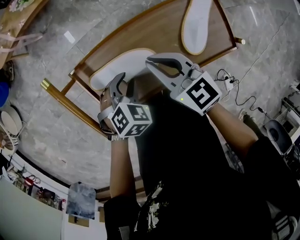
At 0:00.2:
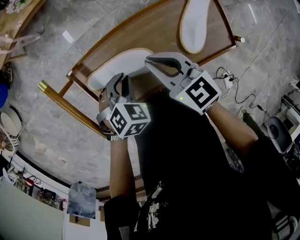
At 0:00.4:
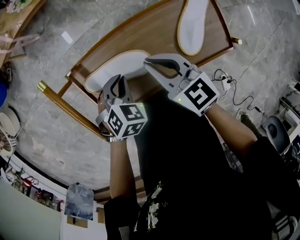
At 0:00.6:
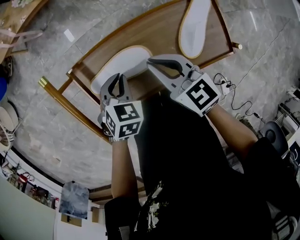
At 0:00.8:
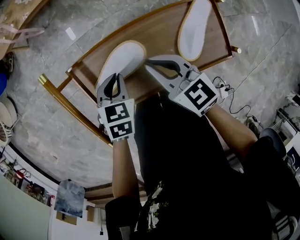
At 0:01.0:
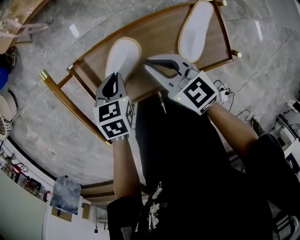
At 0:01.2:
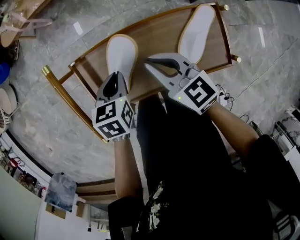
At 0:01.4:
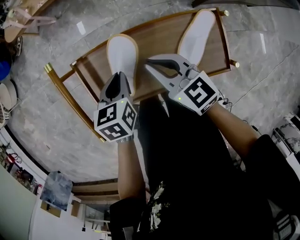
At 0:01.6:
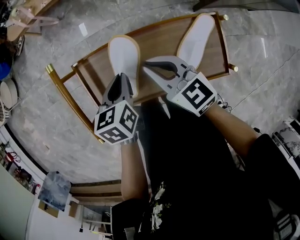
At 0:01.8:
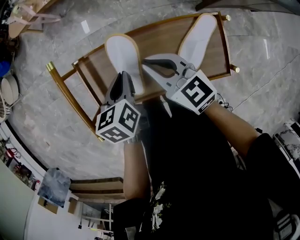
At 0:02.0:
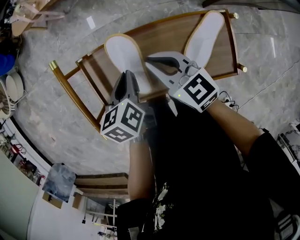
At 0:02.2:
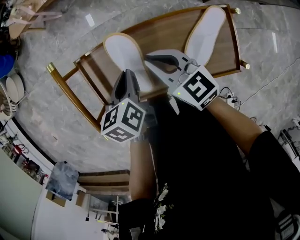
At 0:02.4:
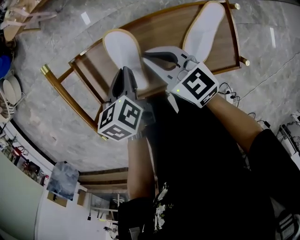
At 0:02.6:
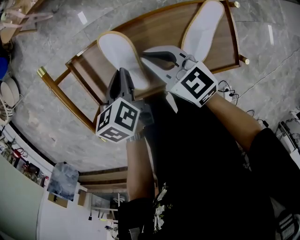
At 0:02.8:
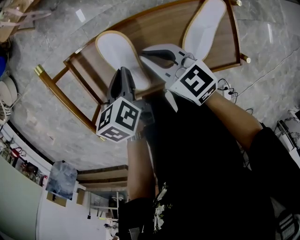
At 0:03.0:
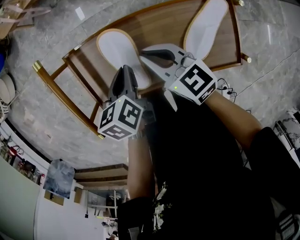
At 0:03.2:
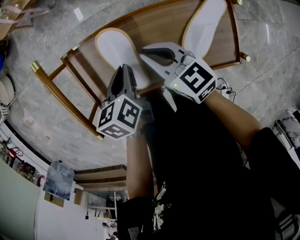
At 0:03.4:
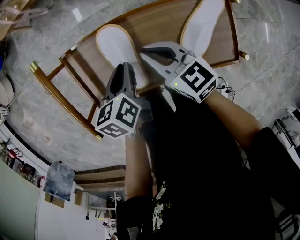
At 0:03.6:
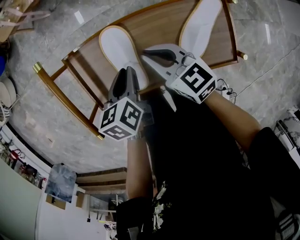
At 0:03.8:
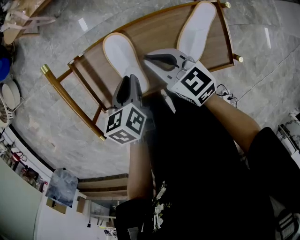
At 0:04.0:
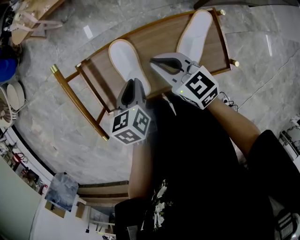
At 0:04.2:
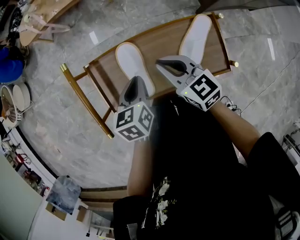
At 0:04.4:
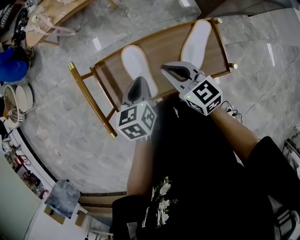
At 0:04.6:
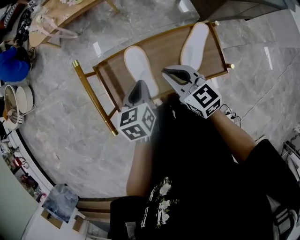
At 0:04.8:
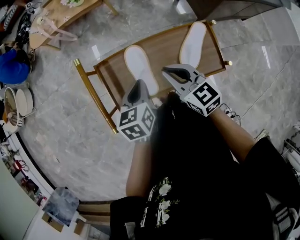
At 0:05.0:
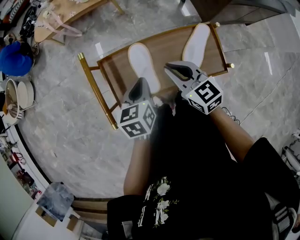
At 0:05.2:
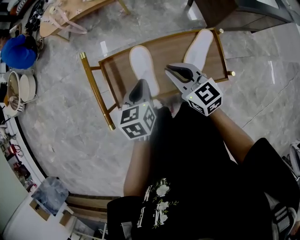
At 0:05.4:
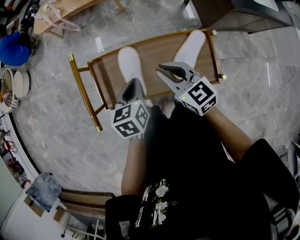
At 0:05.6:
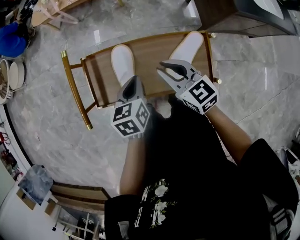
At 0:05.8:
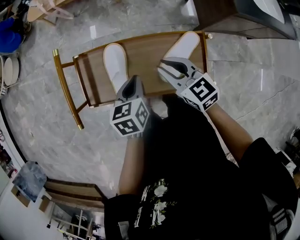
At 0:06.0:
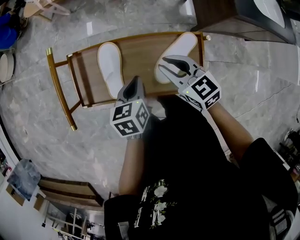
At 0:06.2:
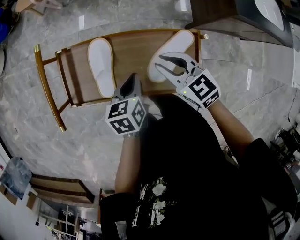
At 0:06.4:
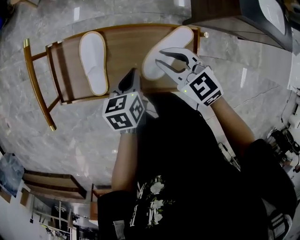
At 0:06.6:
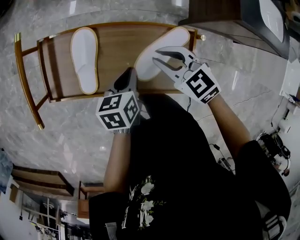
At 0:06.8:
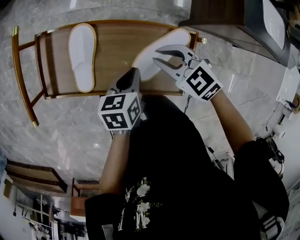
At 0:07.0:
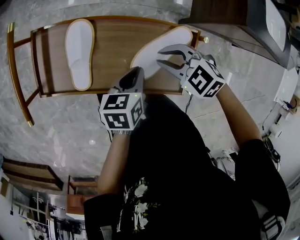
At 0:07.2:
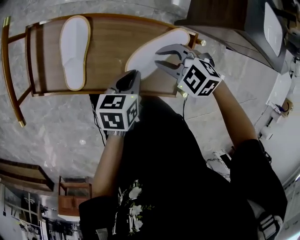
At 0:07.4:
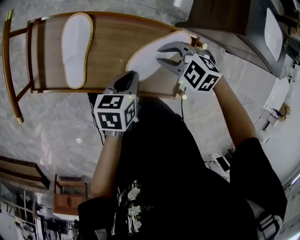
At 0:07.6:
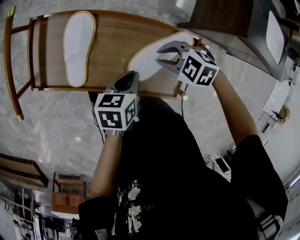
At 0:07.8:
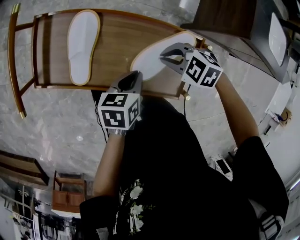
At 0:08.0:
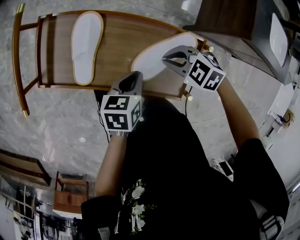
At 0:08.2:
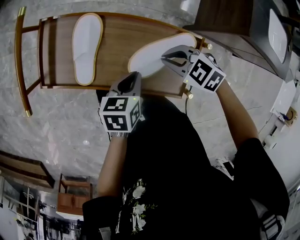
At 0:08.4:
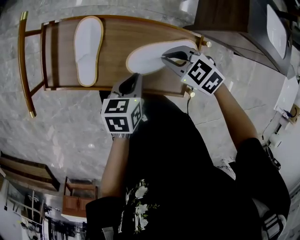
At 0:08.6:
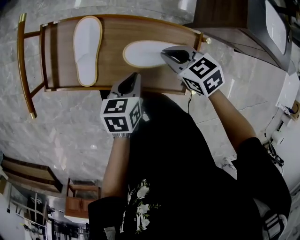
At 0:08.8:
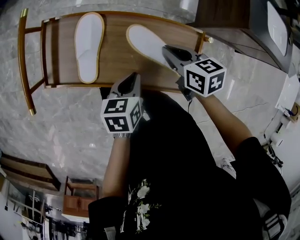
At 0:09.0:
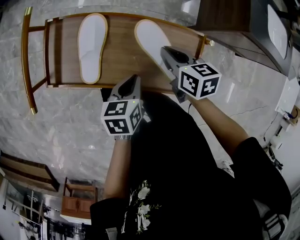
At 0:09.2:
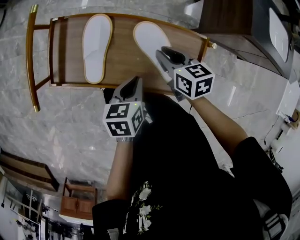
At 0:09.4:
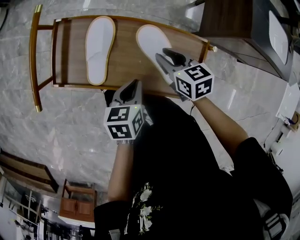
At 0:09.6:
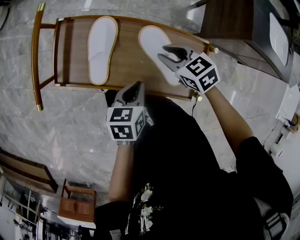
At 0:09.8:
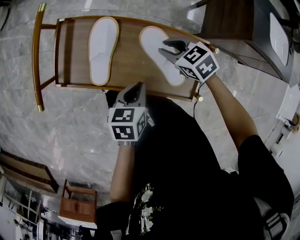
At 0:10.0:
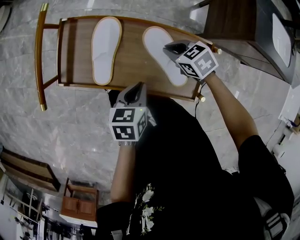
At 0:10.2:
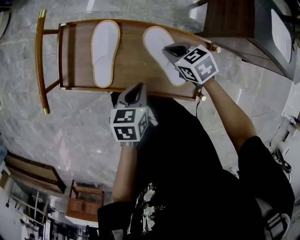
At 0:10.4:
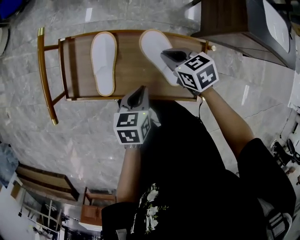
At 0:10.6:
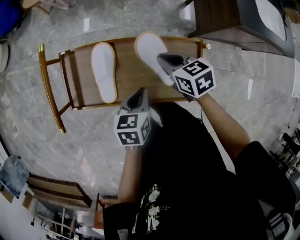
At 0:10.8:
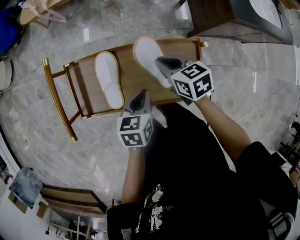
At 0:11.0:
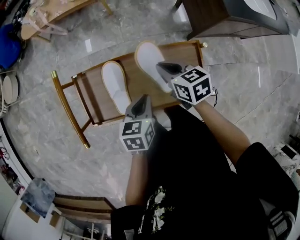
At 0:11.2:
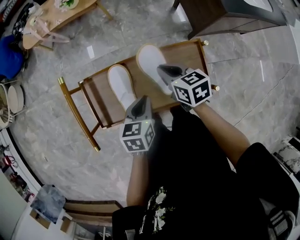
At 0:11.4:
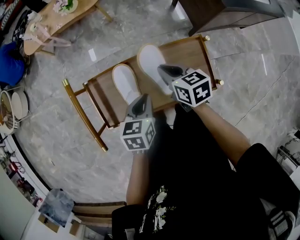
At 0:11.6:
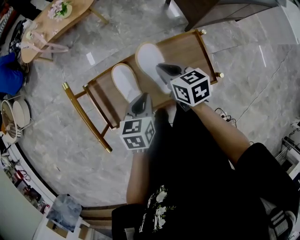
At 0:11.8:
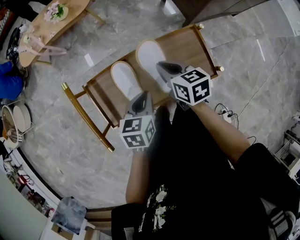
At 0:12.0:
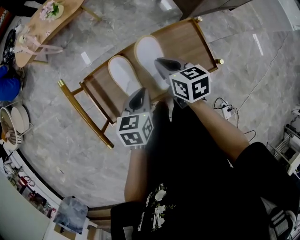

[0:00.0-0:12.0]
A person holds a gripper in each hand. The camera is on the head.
0:00.0 to 0:01.6: The left gripper shifts roughly 10 cm upward, rotates around the line of its fingers by some 70 degrees, counterclockwise from behind, and closes up.
0:01.6 to 0:03.0: The right gripper shifts approximately 5 cm downward.
0:03.0 to 0:04.4: Both grippers move upward, roughly 10 cm.
0:04.4 to 0:06.0: Both grippers travel together to the right, some 10 cm.
0:06.0 to 0:07.6: The left gripper shifts by approximately 10 cm. The right gripper shifts some 15 cm downward, and angles its fingers downward, by about 30 degrees.
0:07.6 to 0:09.0: The right gripper moves approximately 5 cm, and rolls clockwise, seen from behind, by about 60 degrees.
0:09.0 to 0:10.4: The right gripper opens, then closes once more.
0:10.4 to 0:12.0: The left gripper shifts by about 10 cm, and changes its angle by roughly 30 degrees. Meanwhile the right gripper goes about 5 cm upward, and rotates approximately 50 degrees.

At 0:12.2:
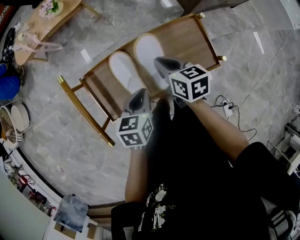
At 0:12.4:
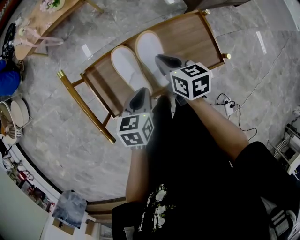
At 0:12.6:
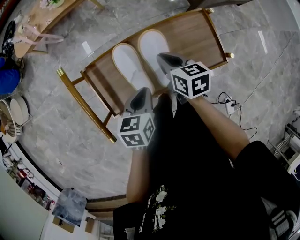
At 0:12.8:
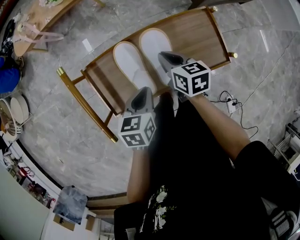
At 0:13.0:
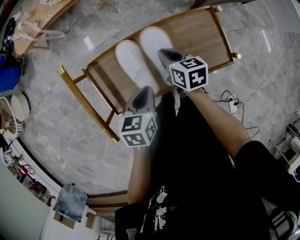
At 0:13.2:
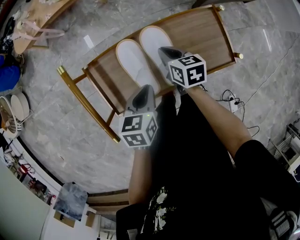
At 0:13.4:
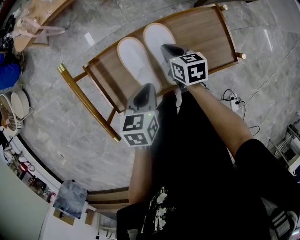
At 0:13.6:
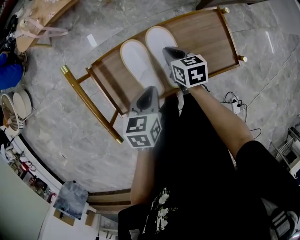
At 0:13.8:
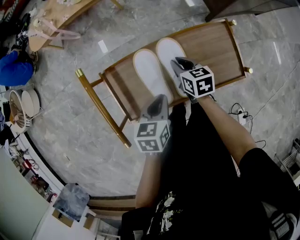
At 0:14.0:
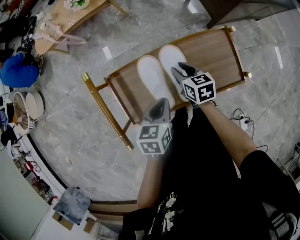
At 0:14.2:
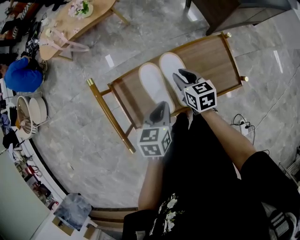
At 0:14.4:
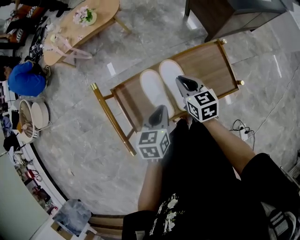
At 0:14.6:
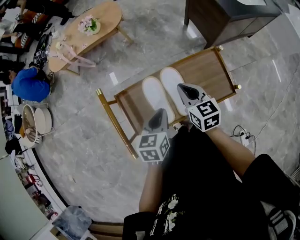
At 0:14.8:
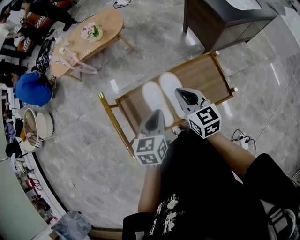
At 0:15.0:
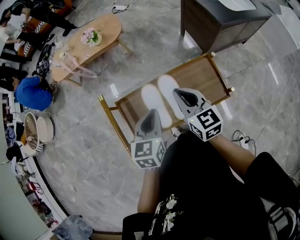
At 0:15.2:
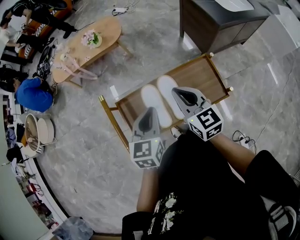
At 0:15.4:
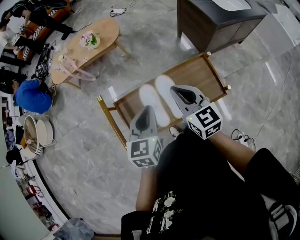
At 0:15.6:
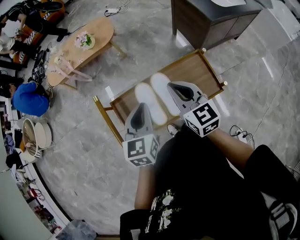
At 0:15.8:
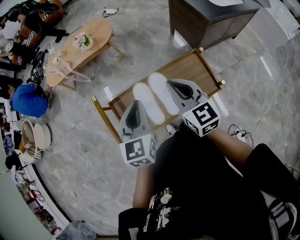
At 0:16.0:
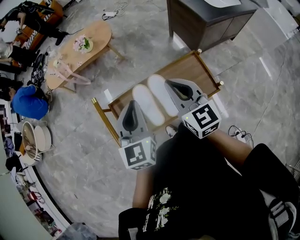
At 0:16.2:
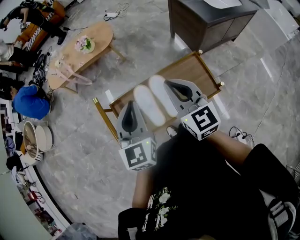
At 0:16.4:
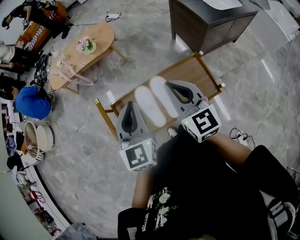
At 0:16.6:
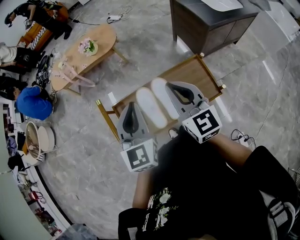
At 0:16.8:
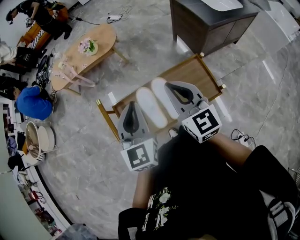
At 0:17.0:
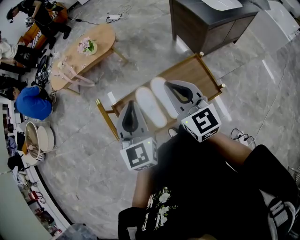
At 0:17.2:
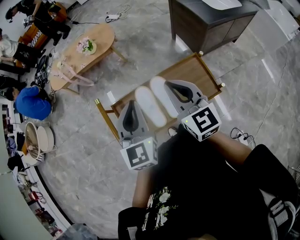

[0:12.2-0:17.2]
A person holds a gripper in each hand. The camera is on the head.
0:12.2 to 0:13.8: The right gripper heads downward, covering about 10 cm.
0:13.8 to 0:15.6: The grippers both shift upward by about 25 cm. The right gripper swivels about 40 degrees. Meanwhile the left gripper rotates approximately 30 degrees.
0:15.6 to 0:17.2: Both grippers travel together upward, roughly 5 cm.

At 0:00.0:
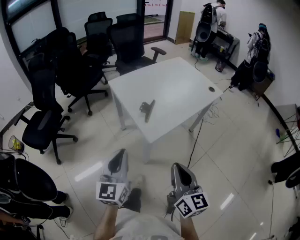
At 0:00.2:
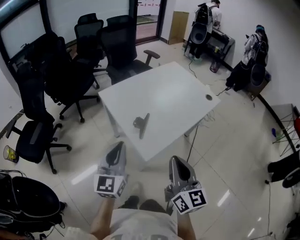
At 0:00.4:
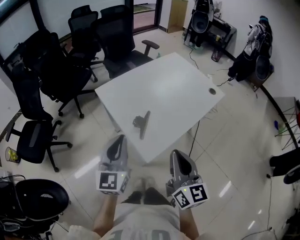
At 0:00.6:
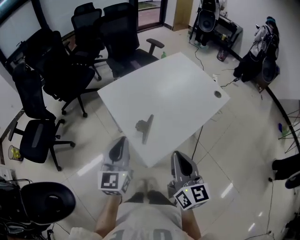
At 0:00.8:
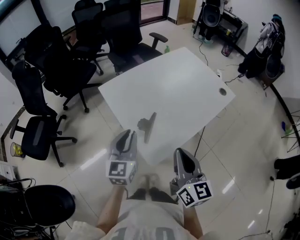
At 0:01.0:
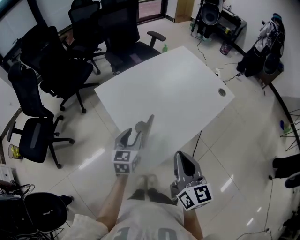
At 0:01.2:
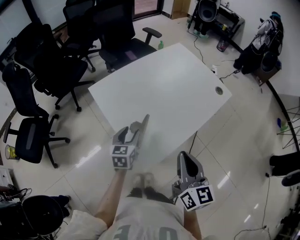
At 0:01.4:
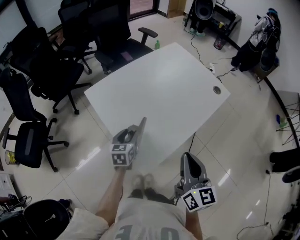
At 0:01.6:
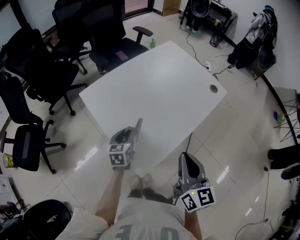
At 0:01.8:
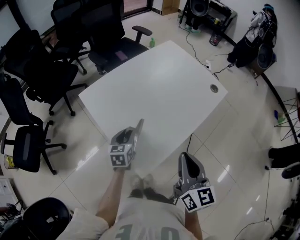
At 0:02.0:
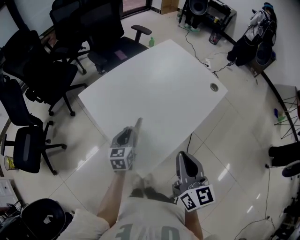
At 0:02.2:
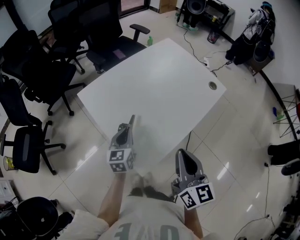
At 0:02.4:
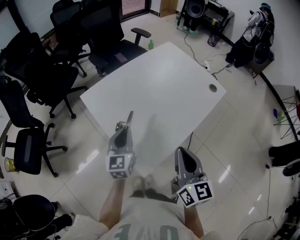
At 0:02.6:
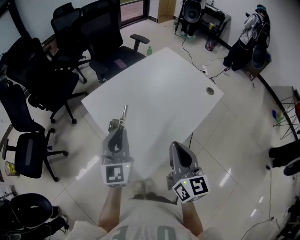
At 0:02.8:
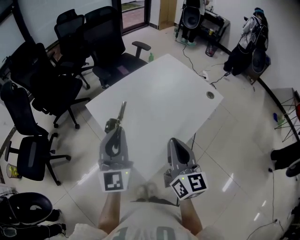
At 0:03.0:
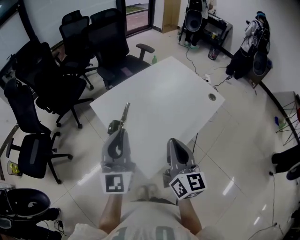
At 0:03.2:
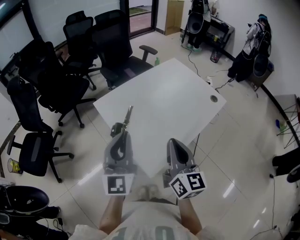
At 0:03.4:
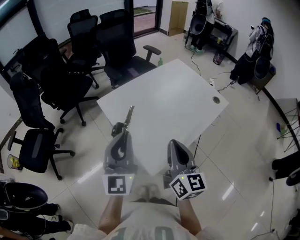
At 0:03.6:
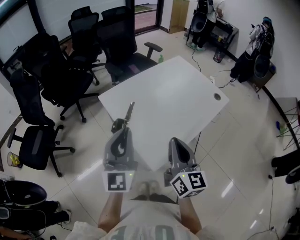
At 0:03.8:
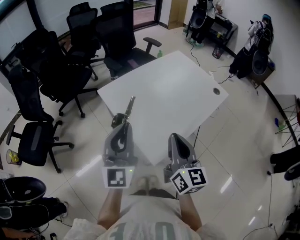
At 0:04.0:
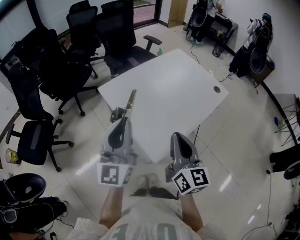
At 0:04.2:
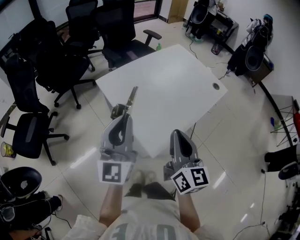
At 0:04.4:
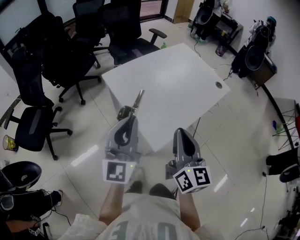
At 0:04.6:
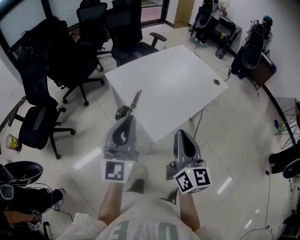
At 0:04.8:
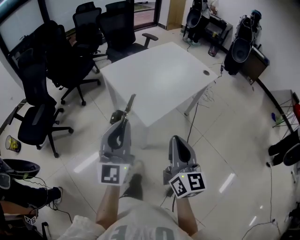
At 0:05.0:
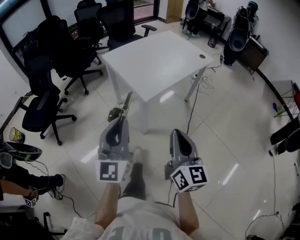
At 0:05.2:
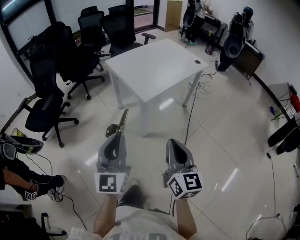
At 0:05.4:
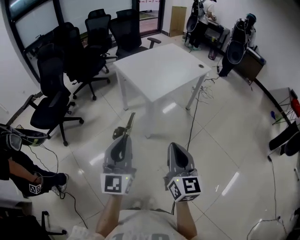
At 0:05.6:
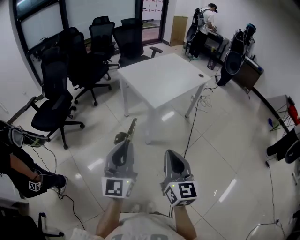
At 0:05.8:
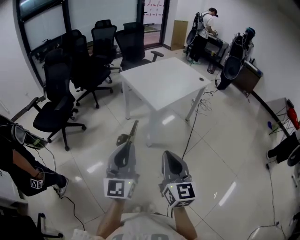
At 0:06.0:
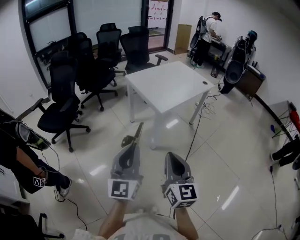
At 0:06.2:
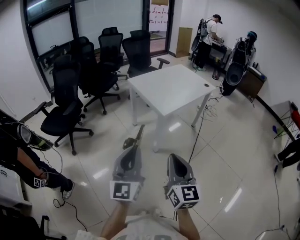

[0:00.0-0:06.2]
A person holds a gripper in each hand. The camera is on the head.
0:00.0 to 0:01.6: The left gripper heads forward and downward, covering some 40 cm, tilts its fingers approximately 40 degrees downward, and opens. The right gripper shifts about 25 cm forward.
0:01.6 to 0:03.2: The right gripper is displaced to the left by some 5 cm, while the left gripper moves upward, approximately 30 cm, points its fingers roughly 40 degrees further upward, and closes its fingers.
0:03.2 to 0:04.6: Both grippers move backward, roughly 15 cm.
0:04.6 to 0:06.2: The pair of grippers is taken backward, approximately 40 cm.
